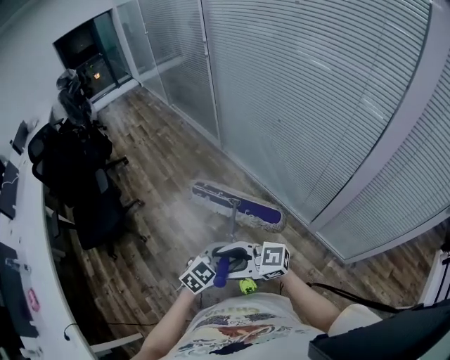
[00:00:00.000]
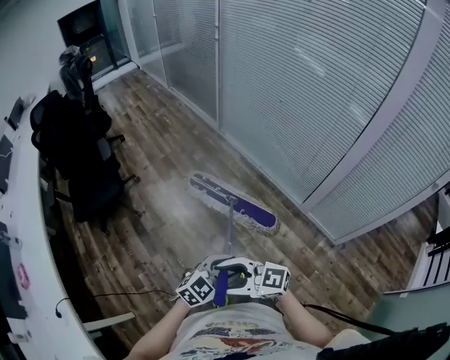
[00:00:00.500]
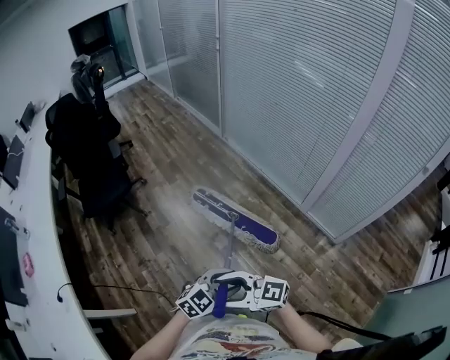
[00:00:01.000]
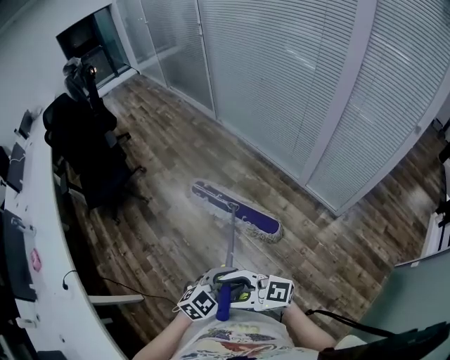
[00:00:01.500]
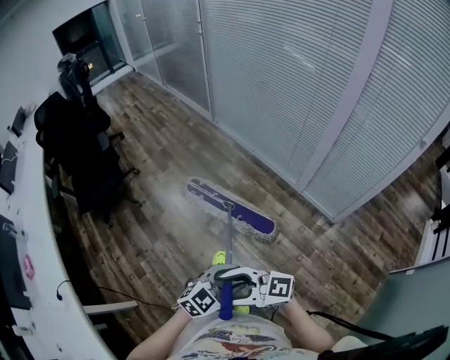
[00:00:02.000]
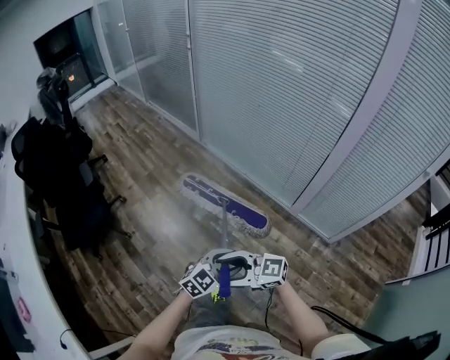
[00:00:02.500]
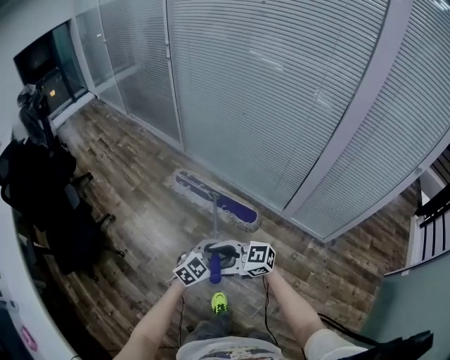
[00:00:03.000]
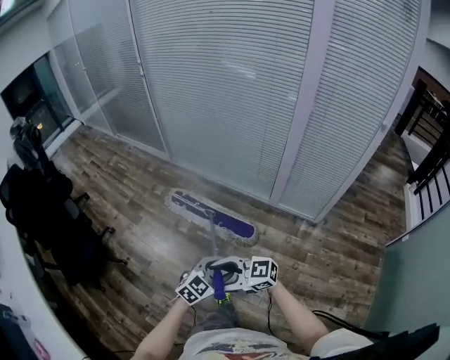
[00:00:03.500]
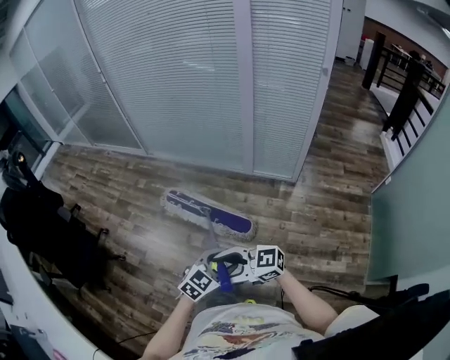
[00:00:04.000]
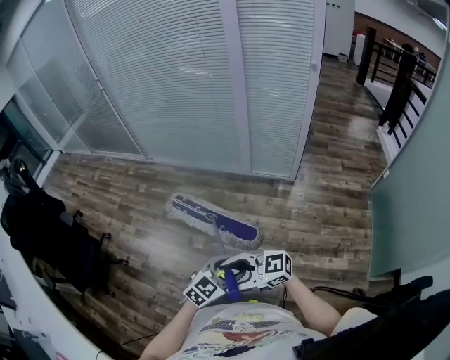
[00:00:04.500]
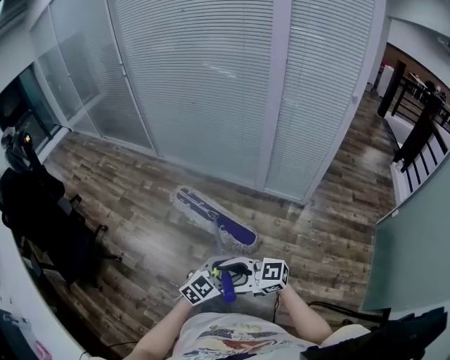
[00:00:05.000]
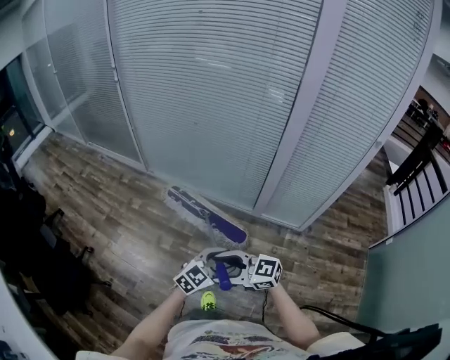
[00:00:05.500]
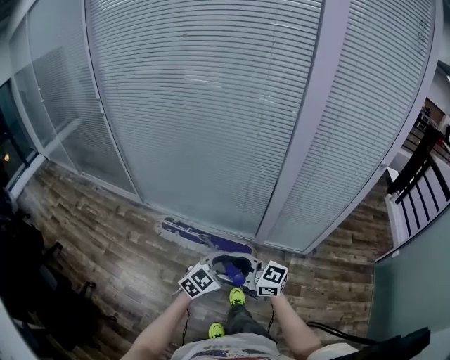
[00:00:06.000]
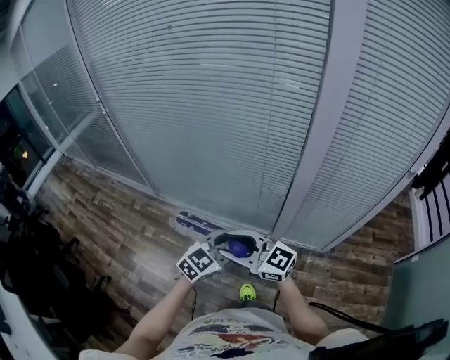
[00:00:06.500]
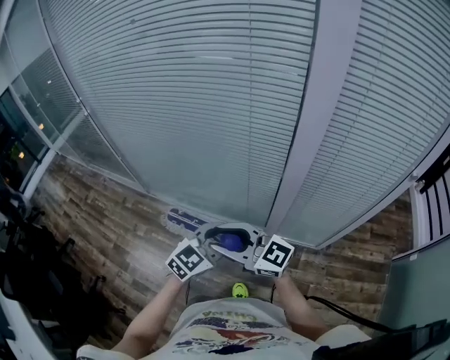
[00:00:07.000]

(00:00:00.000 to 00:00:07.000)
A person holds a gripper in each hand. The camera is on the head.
00:00:00.000 - 00:00:02.000: The two grippers travel together, roughly 40 cm.
00:00:05.000 - 00:00:07.000: The two grippers travel together, some 70 cm. The right gripper changes its angle by some 30 degrees, and closes.

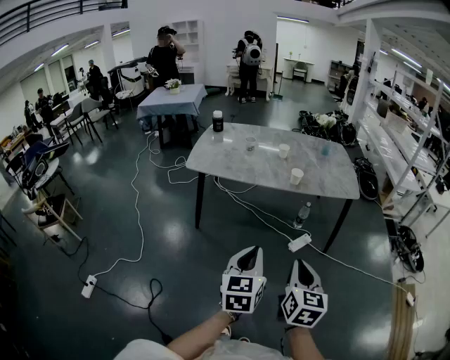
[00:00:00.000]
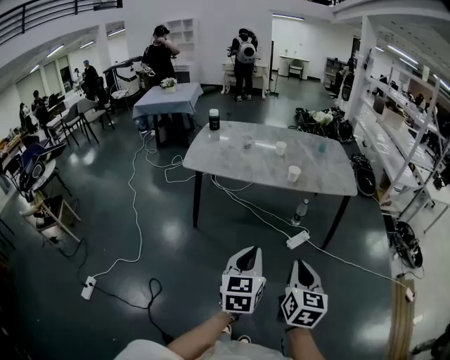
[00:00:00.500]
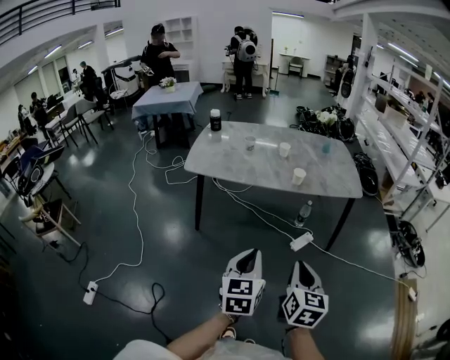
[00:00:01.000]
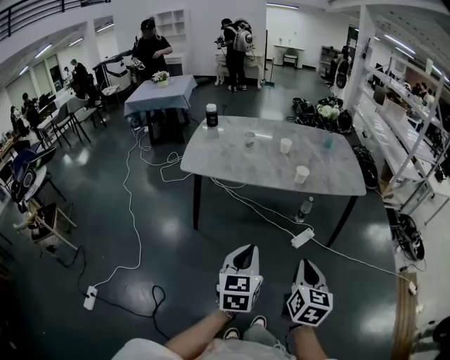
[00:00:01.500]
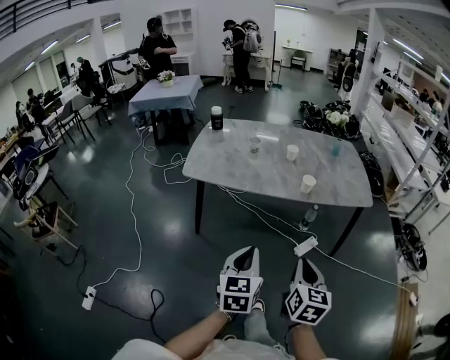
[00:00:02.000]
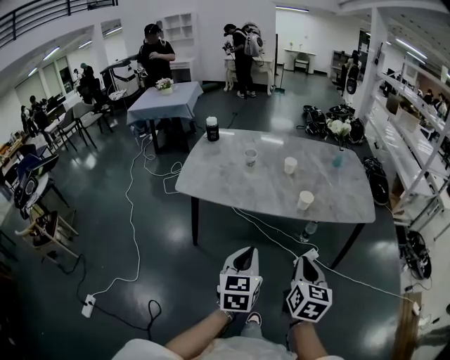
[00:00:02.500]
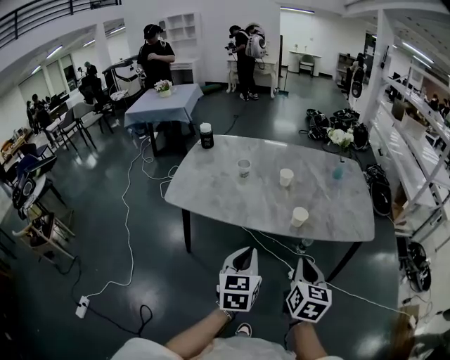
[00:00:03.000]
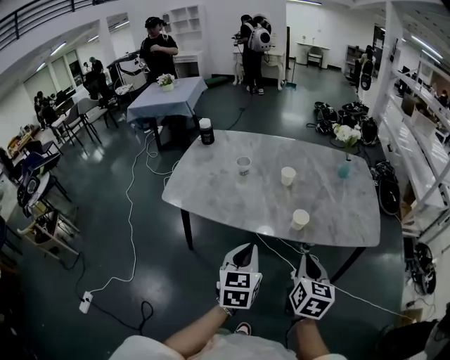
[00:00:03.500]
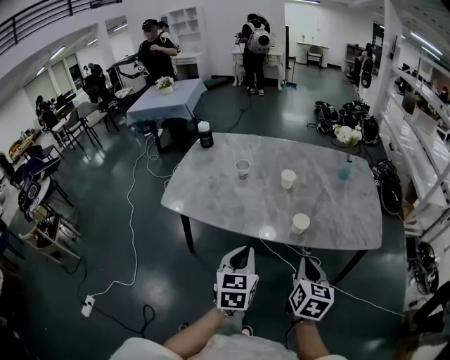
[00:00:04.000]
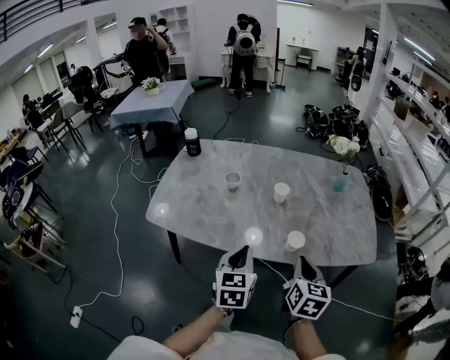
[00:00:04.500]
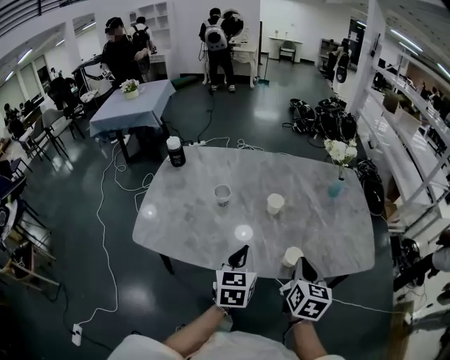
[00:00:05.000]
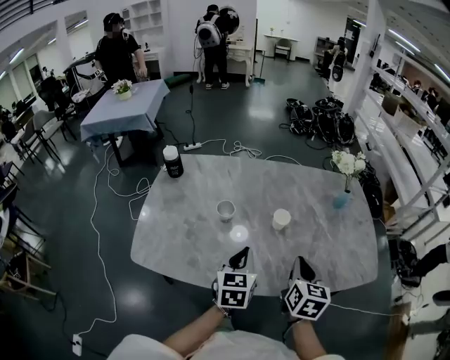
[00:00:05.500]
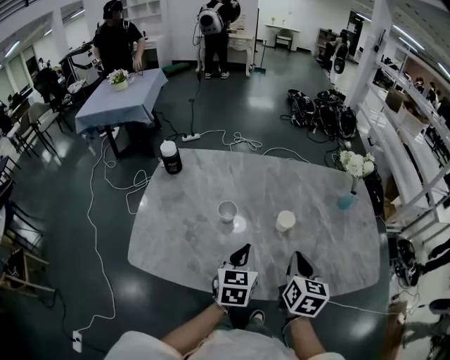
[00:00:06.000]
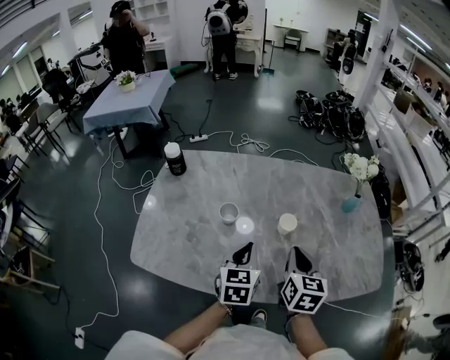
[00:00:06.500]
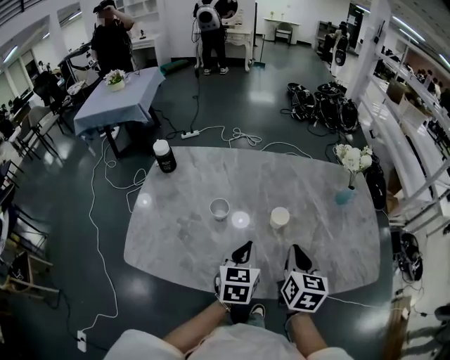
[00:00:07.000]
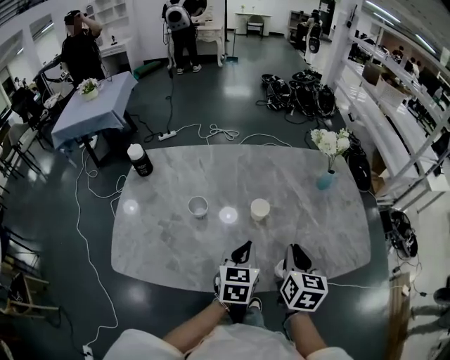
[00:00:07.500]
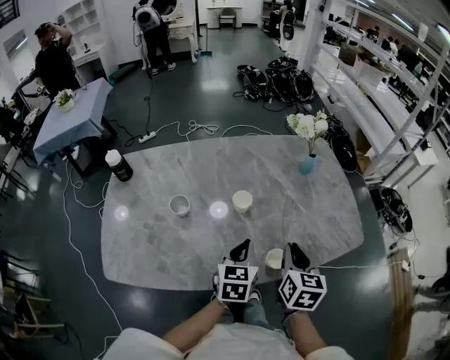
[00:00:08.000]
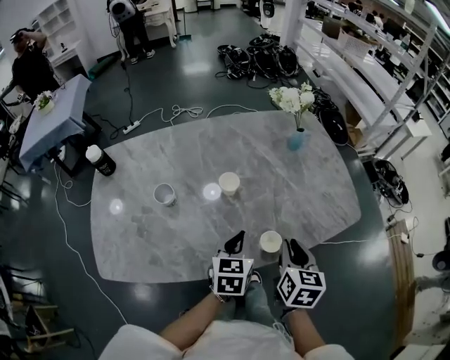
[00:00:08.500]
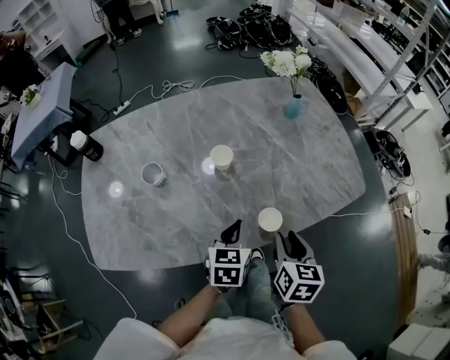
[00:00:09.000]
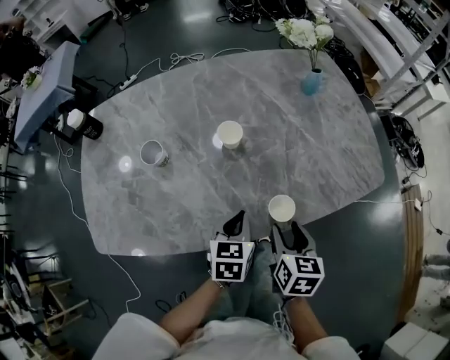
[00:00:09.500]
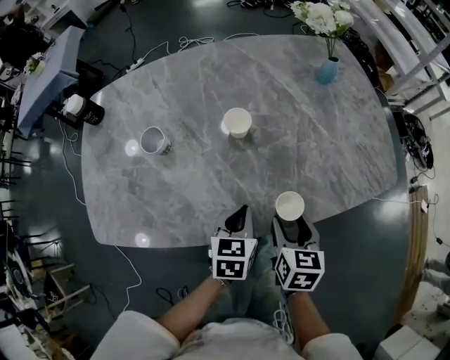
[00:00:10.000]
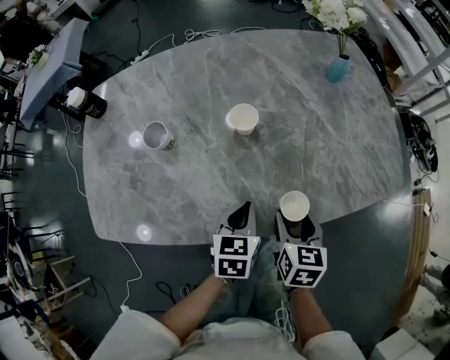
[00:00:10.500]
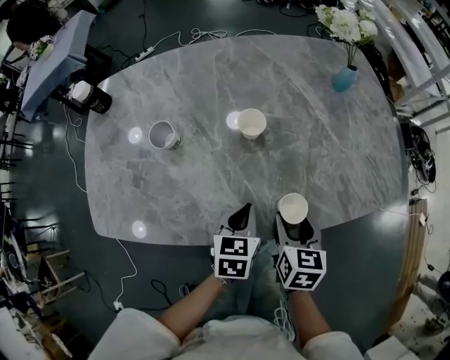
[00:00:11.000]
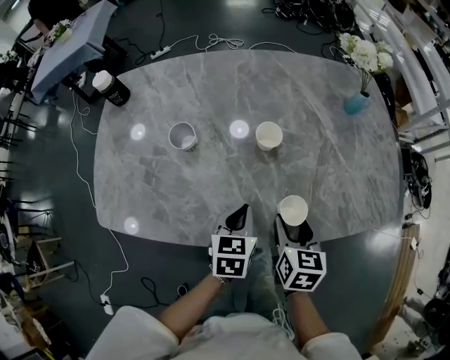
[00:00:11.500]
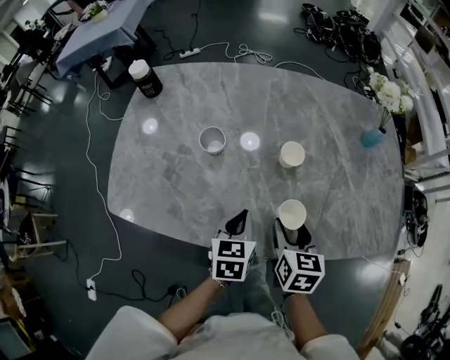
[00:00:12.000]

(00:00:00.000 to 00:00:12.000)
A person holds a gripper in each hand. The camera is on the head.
00:00:00.000 - 00:00:02.000: Both grippers move forward and to the left, approximately 15 cm.
00:00:02.000 - 00:00:04.000: Both grippers travel together forward, some 25 cm.
00:00:04.000 - 00:00:06.000: The right gripper is displaced forward and to the left by about 30 cm, while the left gripper is displaced forward by roughly 30 cm.
00:00:06.000 - 00:00:08.000: Both grippers move to the right, roughly 10 cm.
00:00:08.000 - 00:00:10.000: Both grippers move downward, approximately 15 cm. The right gripper opens.
00:00:10.000 - 00:00:12.000: The right gripper moves to the left and forward, some 10 cm. Meanwhile the left gripper heads to the left, covering about 10 cm.

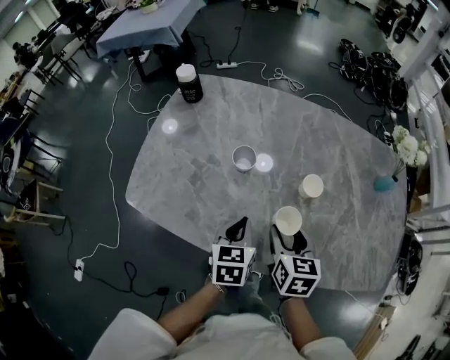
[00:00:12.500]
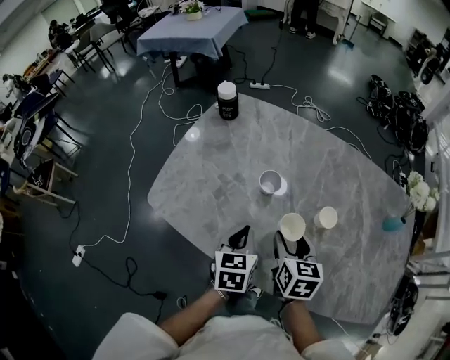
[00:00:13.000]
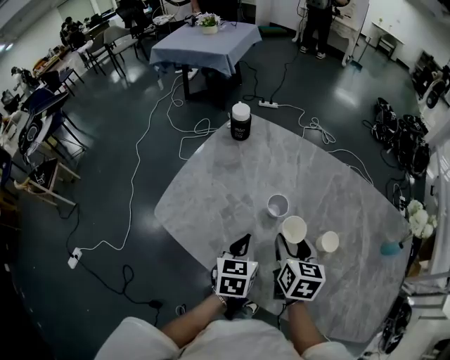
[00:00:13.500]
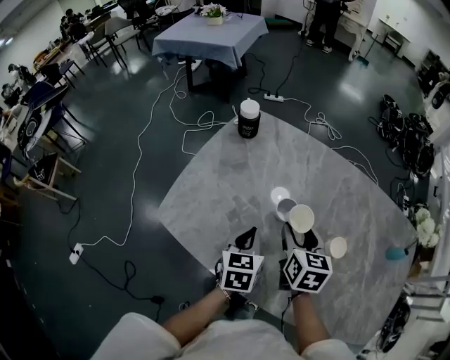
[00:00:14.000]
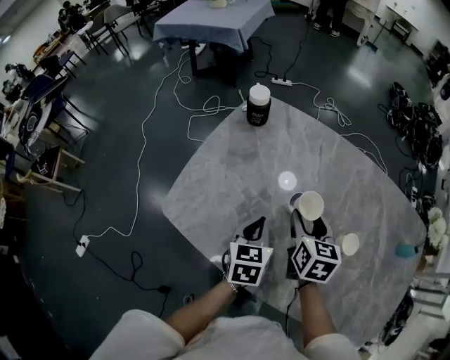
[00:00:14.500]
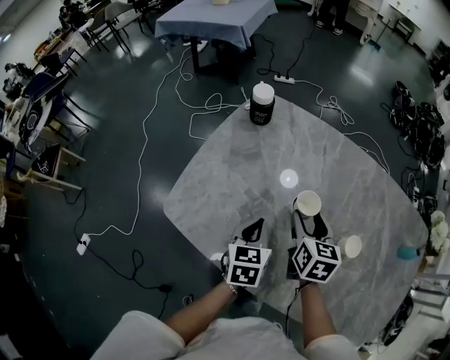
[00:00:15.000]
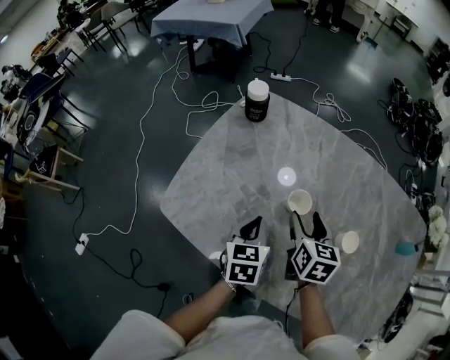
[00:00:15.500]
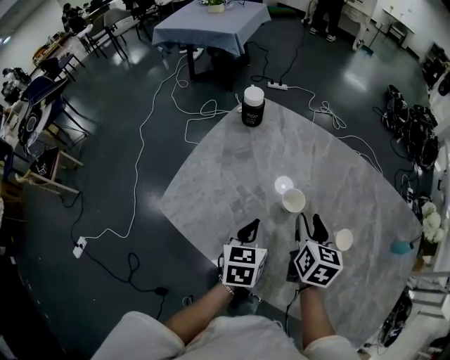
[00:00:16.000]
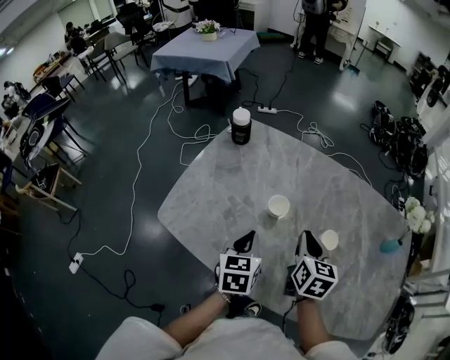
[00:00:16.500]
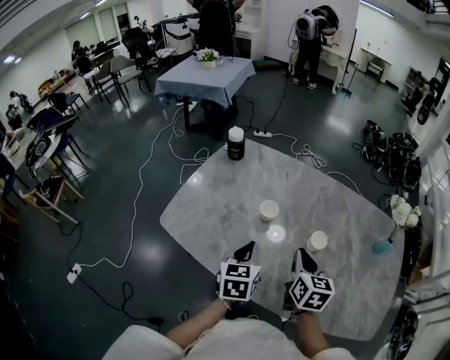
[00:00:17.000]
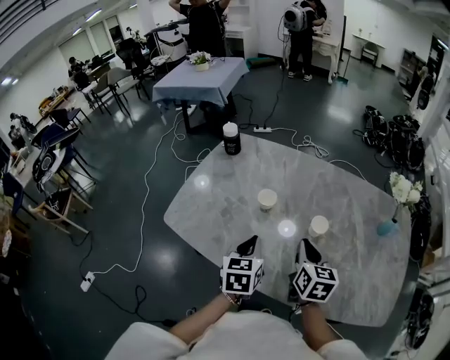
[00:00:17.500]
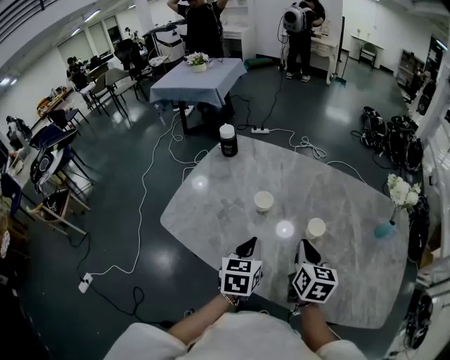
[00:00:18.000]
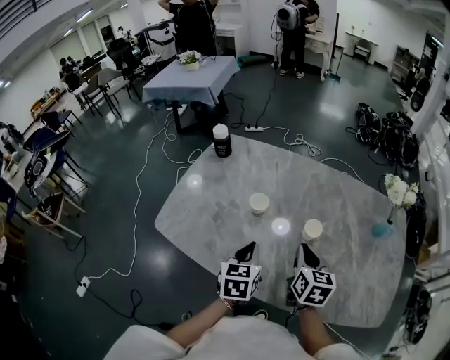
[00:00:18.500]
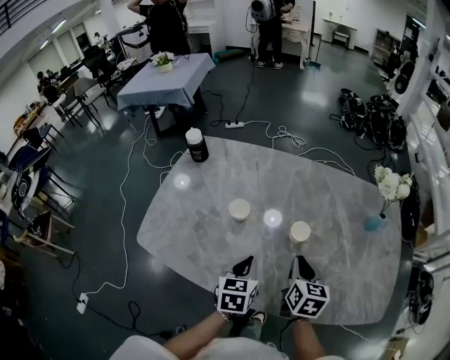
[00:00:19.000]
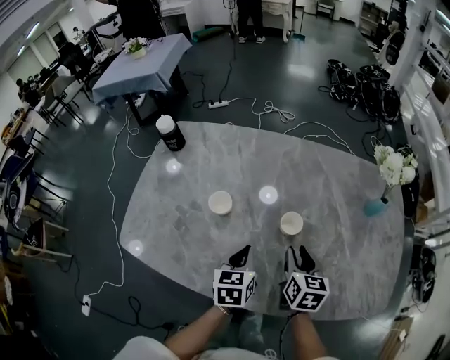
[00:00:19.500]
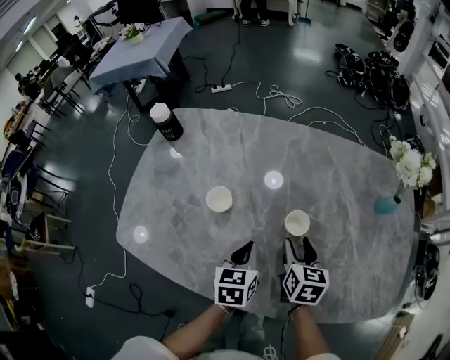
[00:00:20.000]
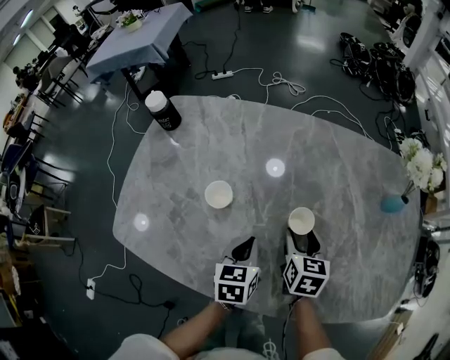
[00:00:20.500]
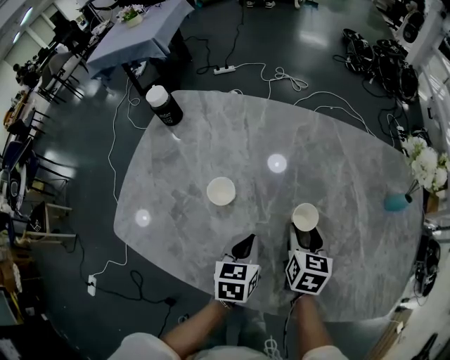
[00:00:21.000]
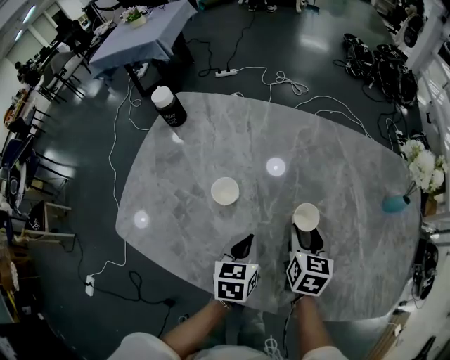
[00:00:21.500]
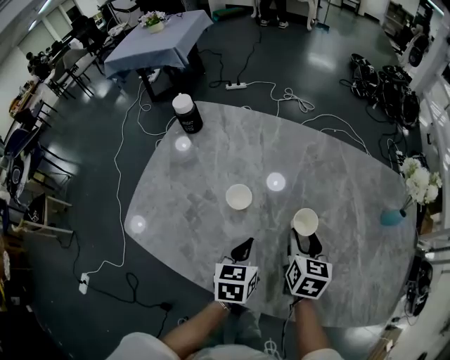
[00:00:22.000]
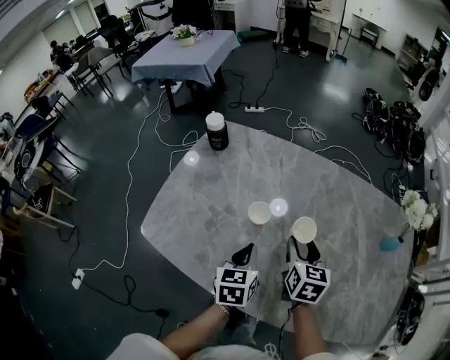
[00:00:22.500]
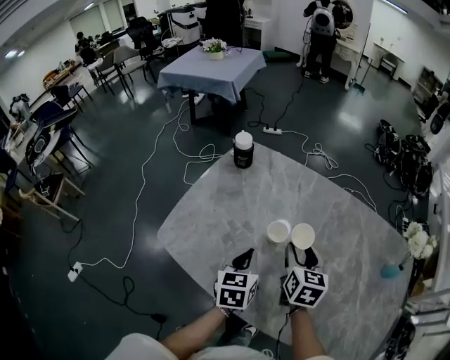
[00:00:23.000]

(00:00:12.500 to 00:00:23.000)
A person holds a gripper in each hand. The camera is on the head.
00:00:12.500 - 00:00:14.500: The right gripper heads forward and to the left, covering approximately 20 cm; the left gripper moves to the left and forward, about 15 cm.
00:00:14.500 - 00:00:16.500: The left gripper is displaced backward by about 5 cm, while the right gripper travels to the right and backward by about 10 cm, and closes up.
00:00:16.500 - 00:00:19.000: The right gripper shifts some 15 cm to the right and backward. Meanwhile the left gripper goes some 10 cm to the right.
00:00:19.000 - 00:00:21.000: The right gripper moves forward and downward, about 15 cm, and opens up. The left gripper heads downward and forward, covering roughly 10 cm.
00:00:21.000 - 00:00:23.000: The two grippers go roughly 20 cm to the left and upward.
